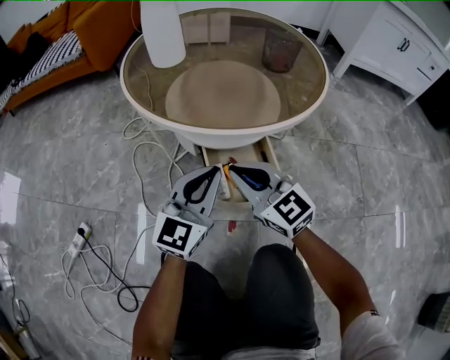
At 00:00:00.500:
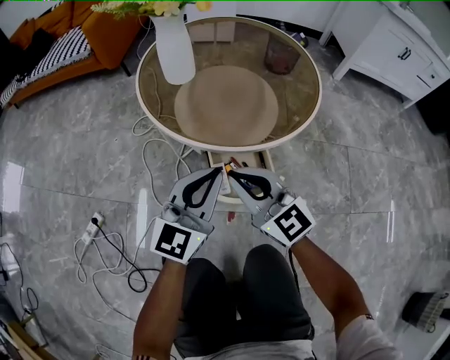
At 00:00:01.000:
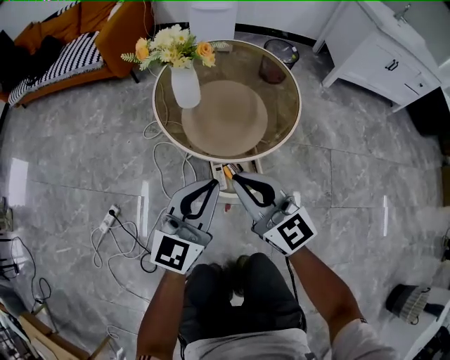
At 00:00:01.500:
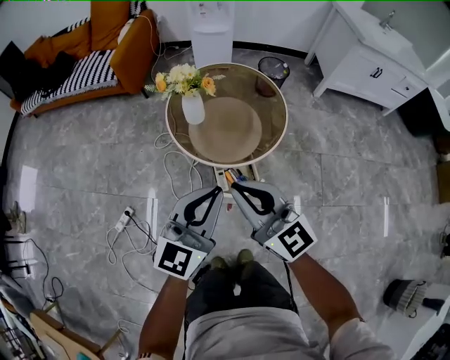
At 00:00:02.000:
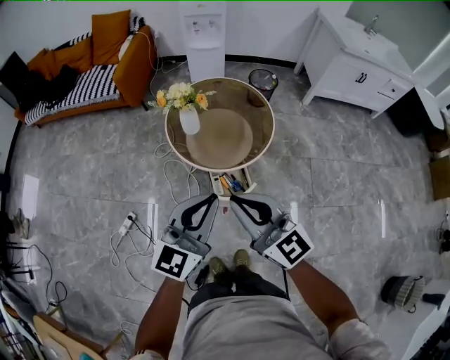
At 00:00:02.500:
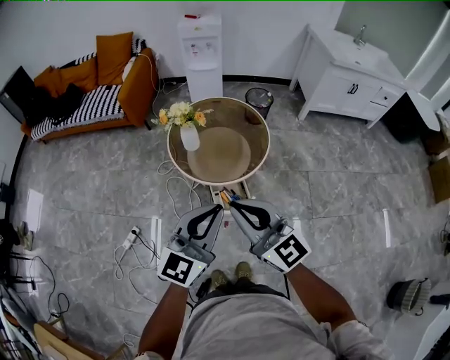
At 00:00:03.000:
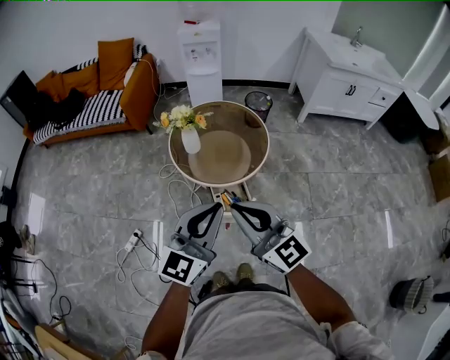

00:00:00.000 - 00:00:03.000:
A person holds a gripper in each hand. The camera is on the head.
00:00:00.000 - 00:00:01.500: Both grippers travel together upward, approximately 50 cm.
00:00:01.500 - 00:00:03.000: Both grippers move upward and backward, approximately 15 cm.

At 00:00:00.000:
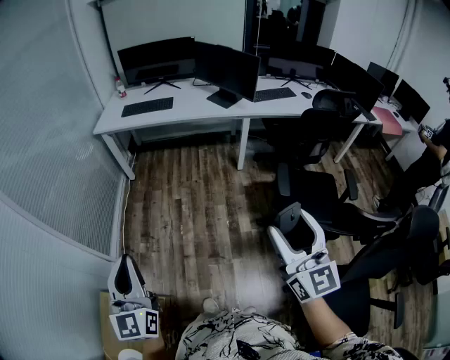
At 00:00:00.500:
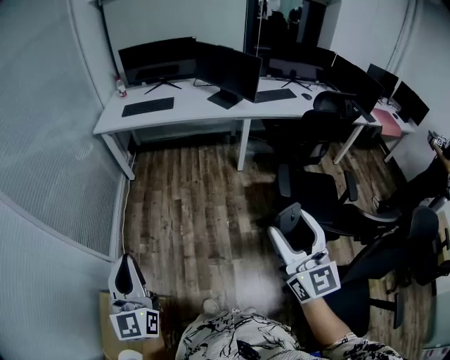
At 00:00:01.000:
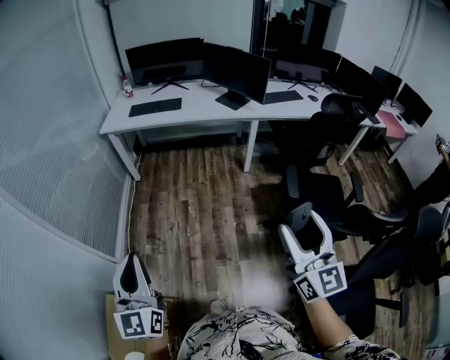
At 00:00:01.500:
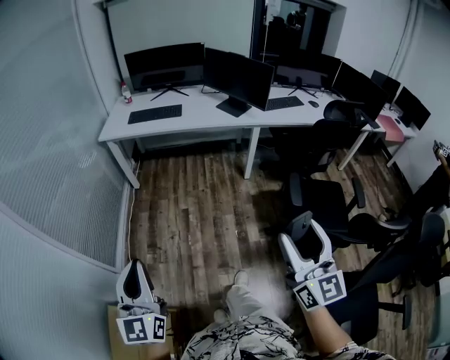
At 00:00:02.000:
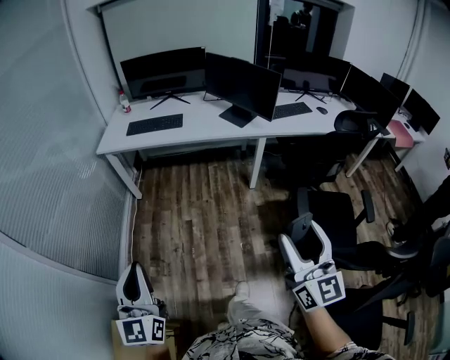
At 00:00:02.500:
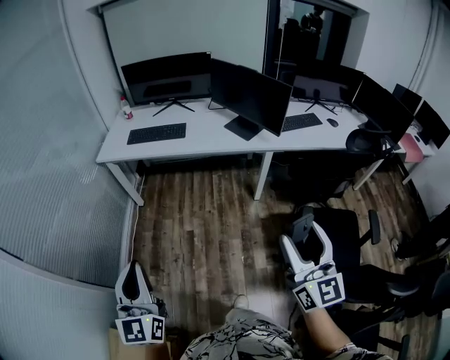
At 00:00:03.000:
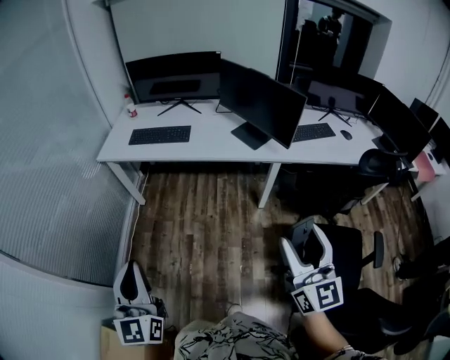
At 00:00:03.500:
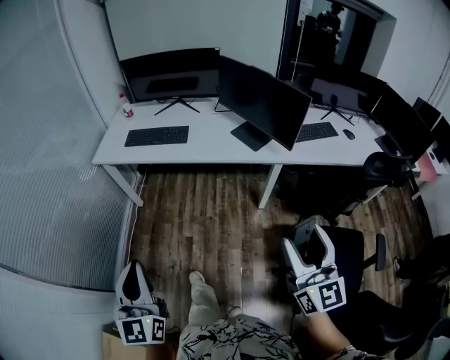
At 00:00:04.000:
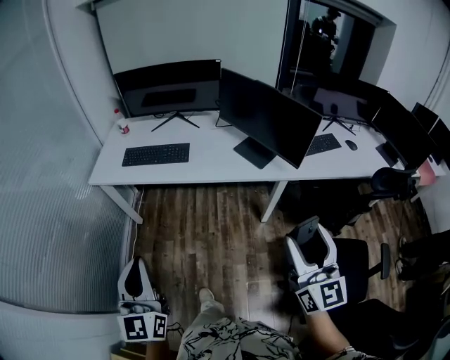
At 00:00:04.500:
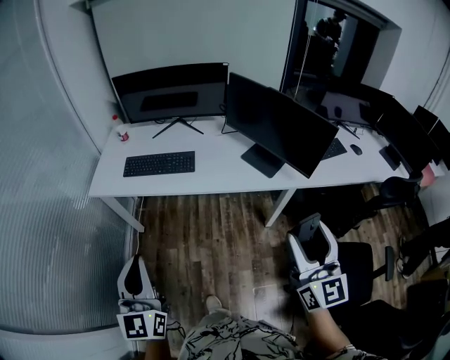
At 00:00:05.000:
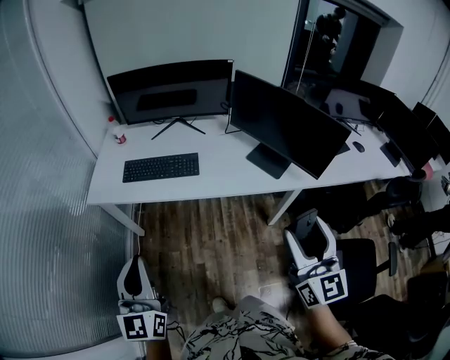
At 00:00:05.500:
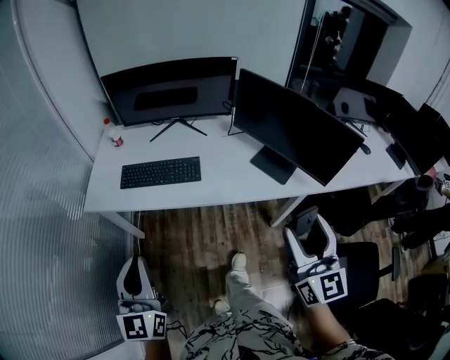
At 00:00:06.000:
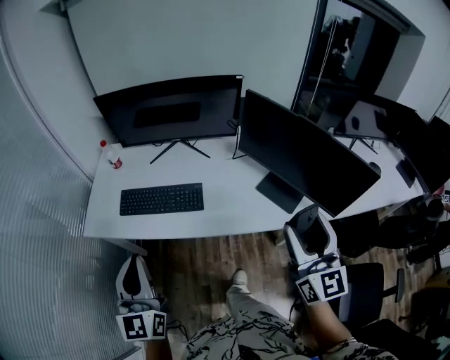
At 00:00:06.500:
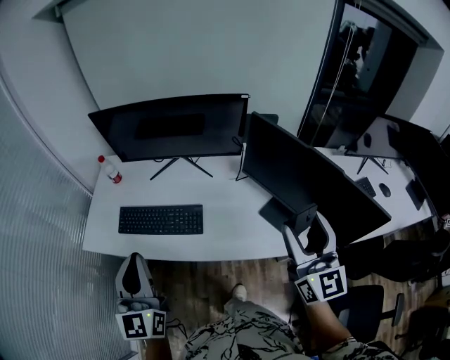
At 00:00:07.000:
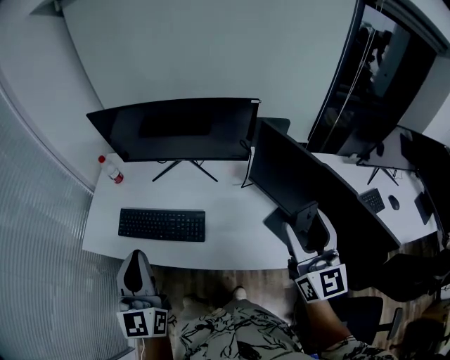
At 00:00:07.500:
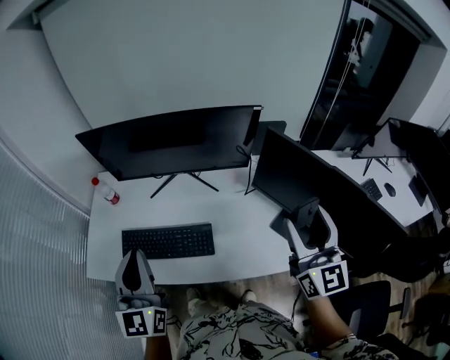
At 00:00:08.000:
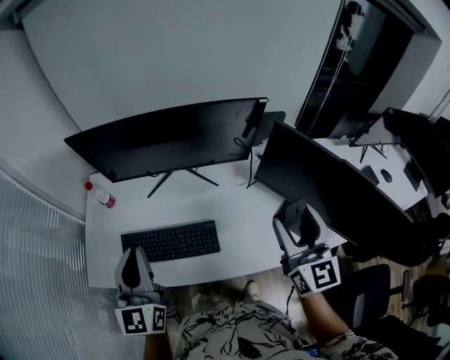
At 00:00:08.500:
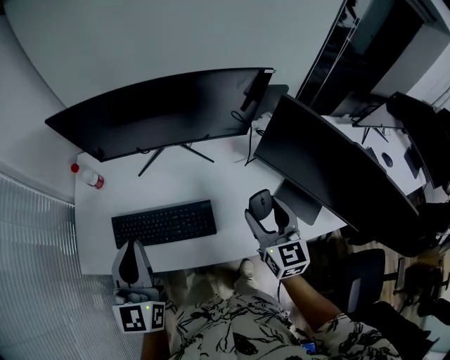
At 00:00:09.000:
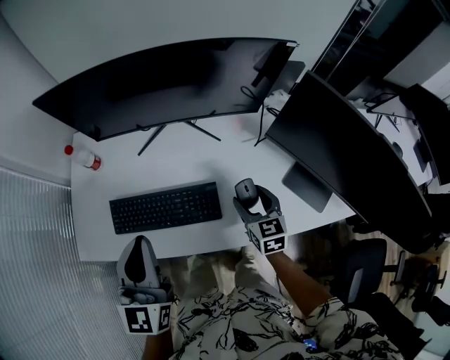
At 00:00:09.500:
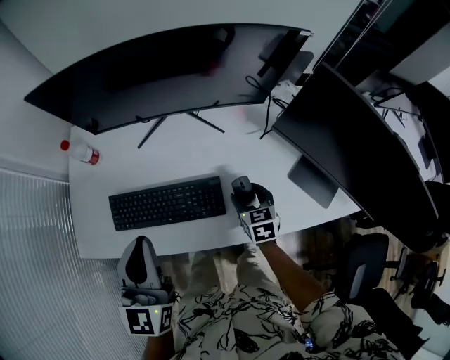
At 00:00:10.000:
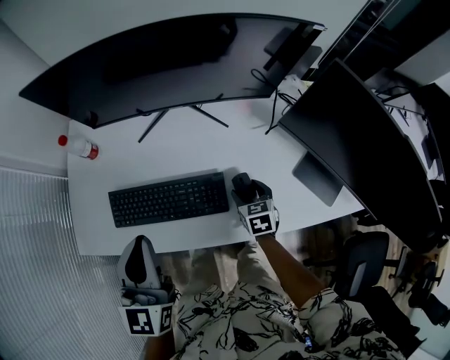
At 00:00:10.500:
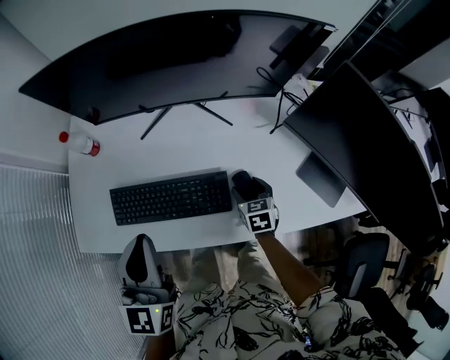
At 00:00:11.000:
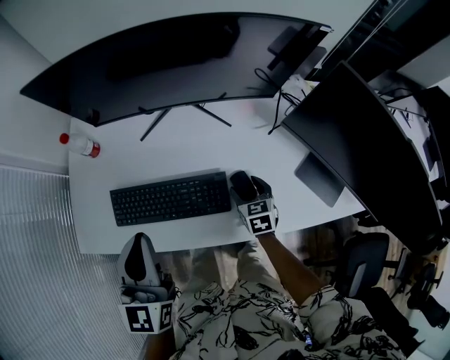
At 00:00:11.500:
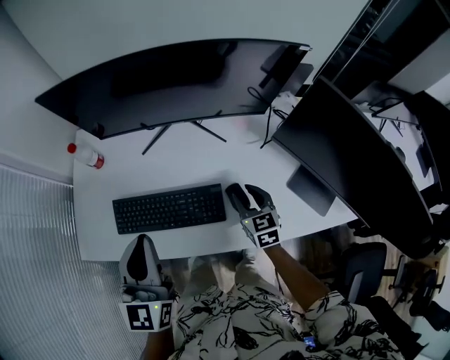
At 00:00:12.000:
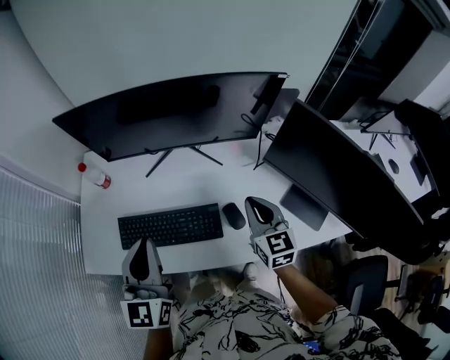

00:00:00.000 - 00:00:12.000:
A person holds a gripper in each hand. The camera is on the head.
00:00:00.000 - 00:00:02.000: The two grippers go some 15 cm forward.
00:00:02.000 - 00:00:04.000: Both grippers travel together forward, some 35 cm.
00:00:04.000 - 00:00:06.000: Both grippers travel together forward, about 35 cm.
00:00:06.000 - 00:00:08.000: The grippers both shift forward by approximately 25 cm.
00:00:08.000 - 00:00:10.000: The right gripper goes roughly 40 cm downward, and angles its fingers downward, by about 50 degrees; the left gripper is displaced downward by about 10 cm.
00:00:10.000 - 00:00:12.000: The left gripper shifts by about 5 cm; the right gripper heads upward, covering approximately 20 cm, tips its fingers upward by roughly 30 degrees, and closes.

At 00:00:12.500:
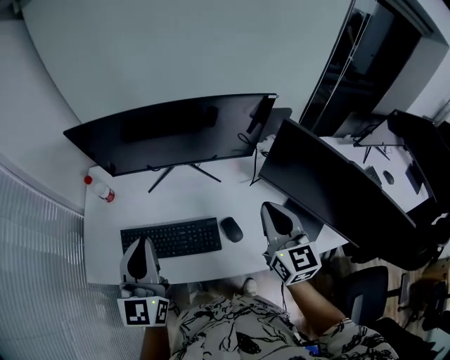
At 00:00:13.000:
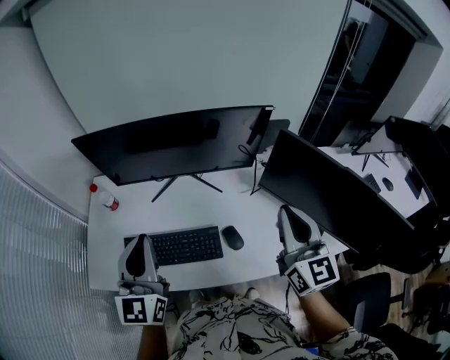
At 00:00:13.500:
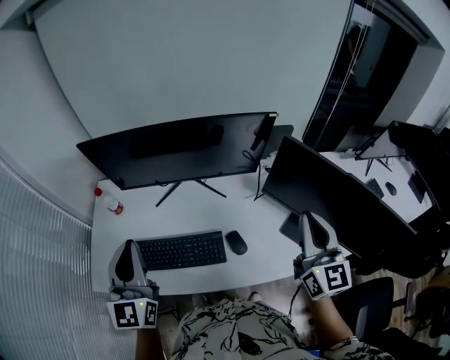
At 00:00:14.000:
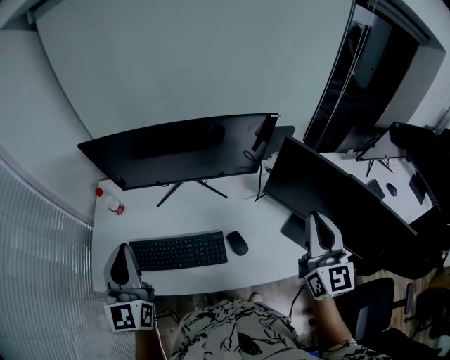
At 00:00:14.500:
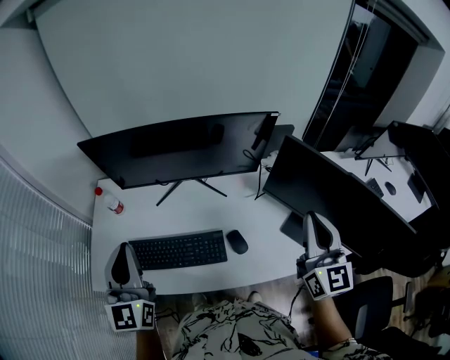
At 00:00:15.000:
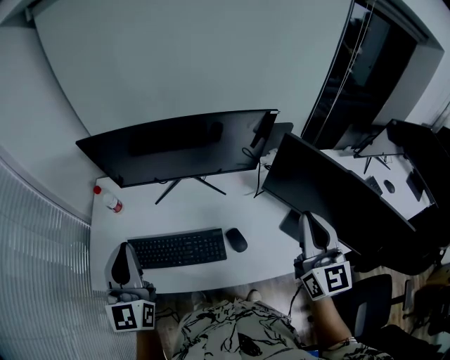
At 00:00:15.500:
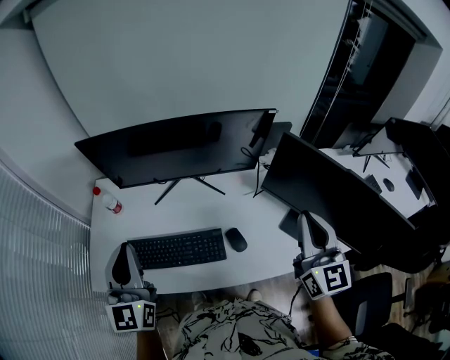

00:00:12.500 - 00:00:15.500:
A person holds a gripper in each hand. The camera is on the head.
00:00:12.500 - 00:00:14.000: The right gripper shifts about 10 cm to the right and upward. The left gripper travels to the left by approximately 5 cm.
00:00:14.000 - 00:00:15.500: The grippers stay close to where they were, moving slightly.

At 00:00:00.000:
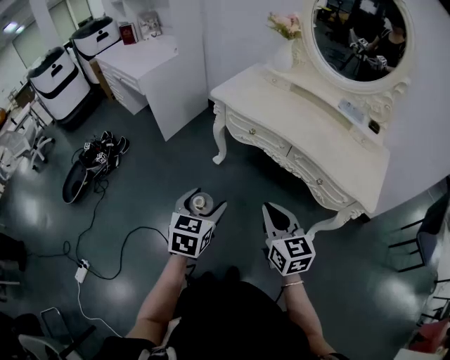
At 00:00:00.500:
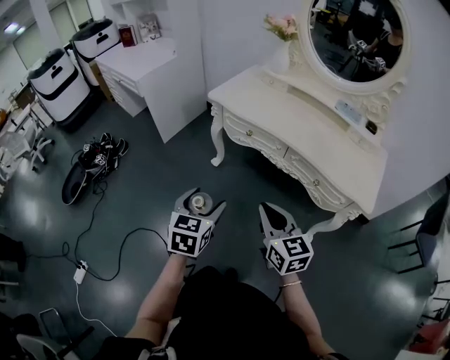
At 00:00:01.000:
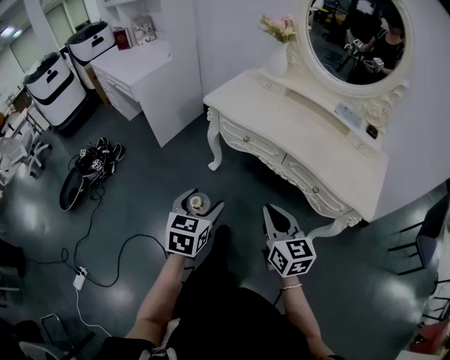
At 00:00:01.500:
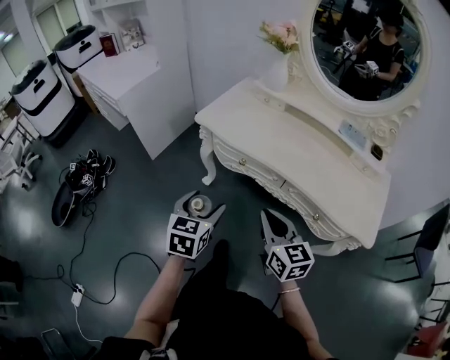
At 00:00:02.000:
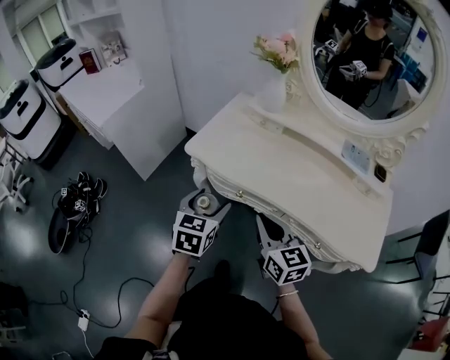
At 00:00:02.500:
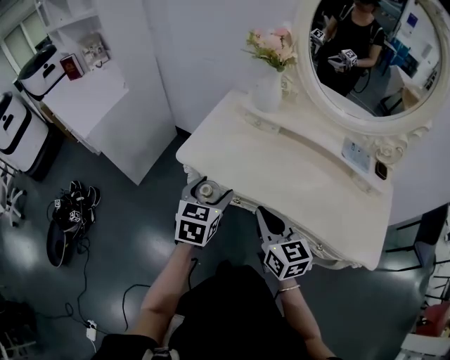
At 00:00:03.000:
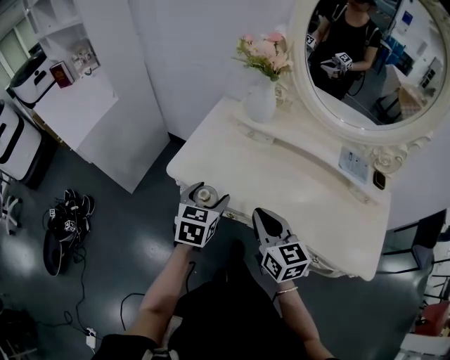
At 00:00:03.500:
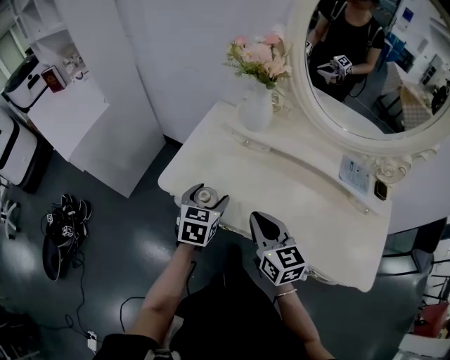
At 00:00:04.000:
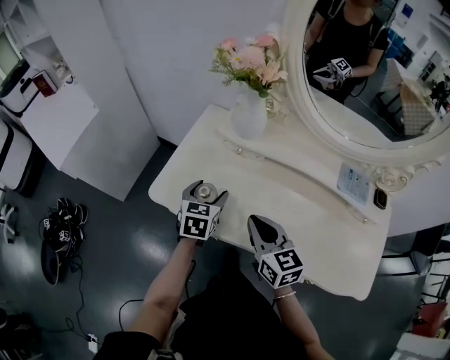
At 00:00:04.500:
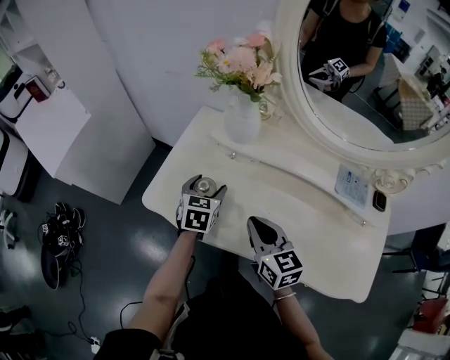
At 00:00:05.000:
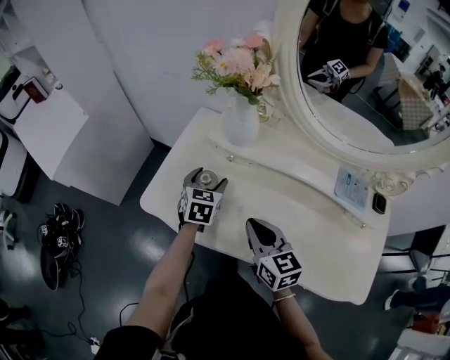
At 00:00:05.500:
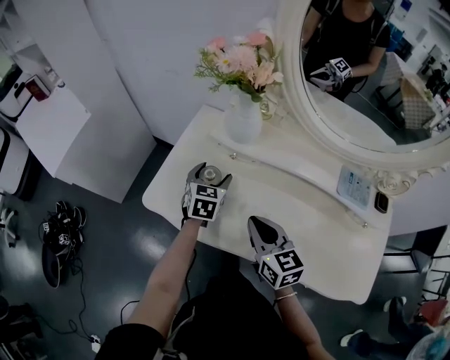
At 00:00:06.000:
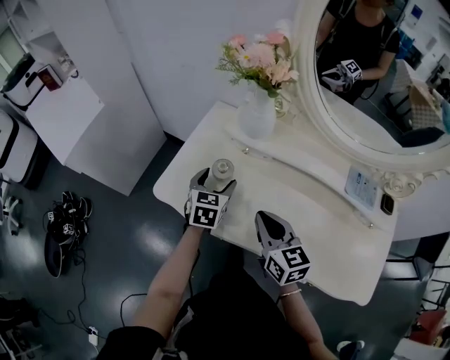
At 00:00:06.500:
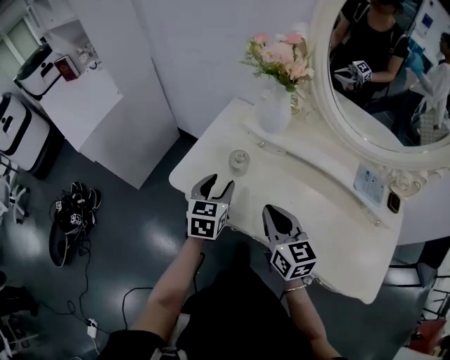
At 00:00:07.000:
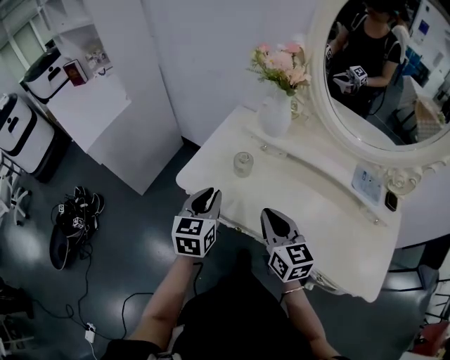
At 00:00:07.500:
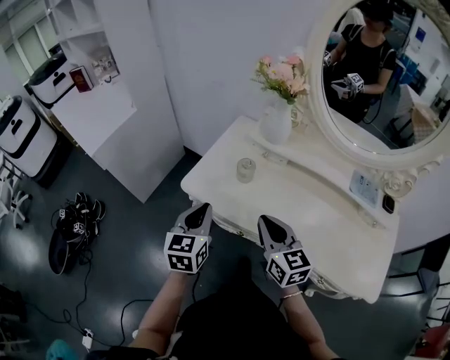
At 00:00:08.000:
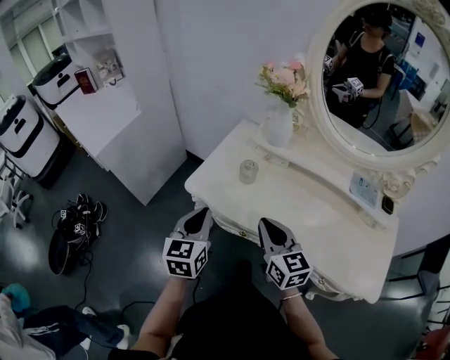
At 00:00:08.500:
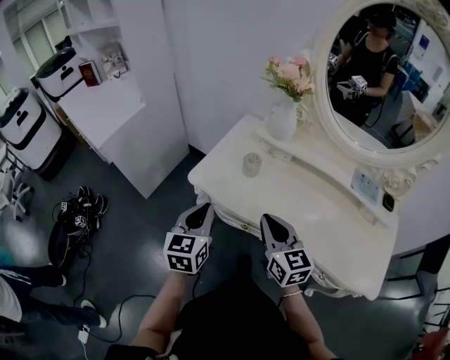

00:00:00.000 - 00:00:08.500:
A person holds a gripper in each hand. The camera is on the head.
00:00:00.000 - 00:00:02.000: Both grippers move forward, some 30 cm.
00:00:02.000 - 00:00:04.000: Both grippers move forward, about 20 cm.
00:00:04.000 - 00:00:06.500: The left gripper reaches roughly 10 cm forward, then returns.
00:00:06.500 - 00:00:08.500: The right gripper travels backward and to the left by approximately 10 cm, while the left gripper heads backward, to the left and upward, covering roughly 20 cm, and closes its fingers.
